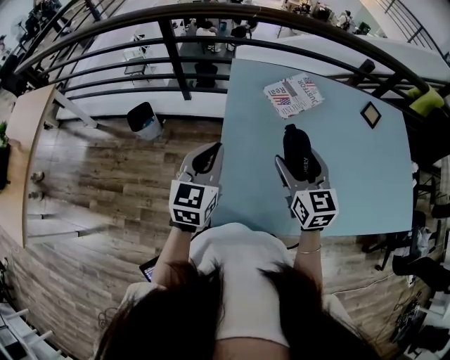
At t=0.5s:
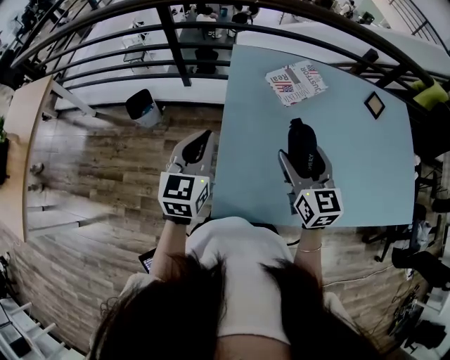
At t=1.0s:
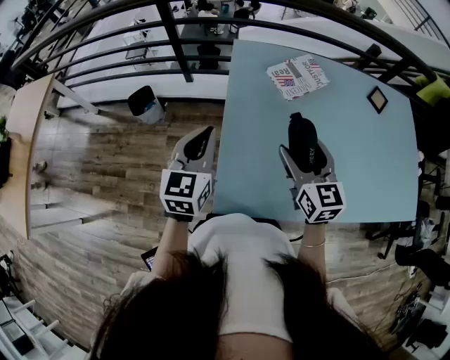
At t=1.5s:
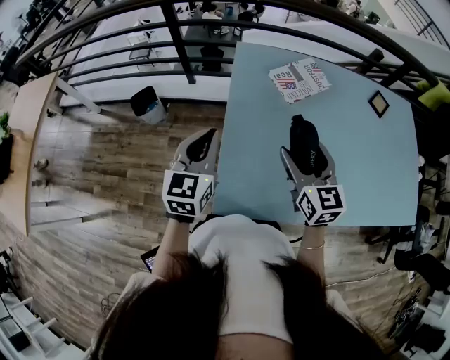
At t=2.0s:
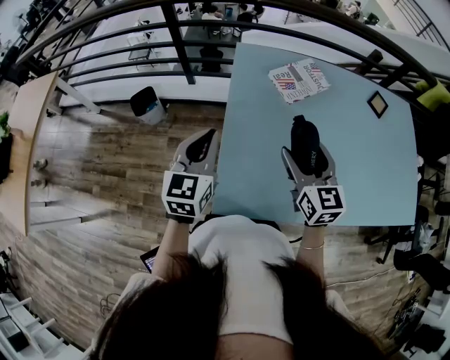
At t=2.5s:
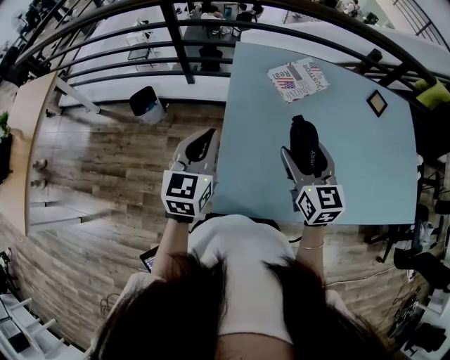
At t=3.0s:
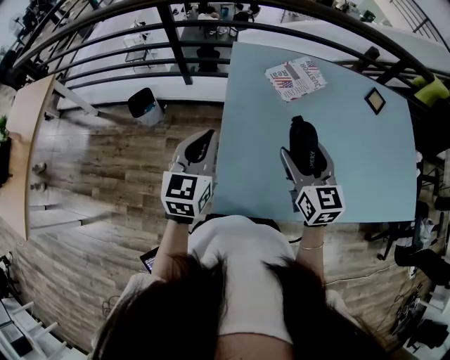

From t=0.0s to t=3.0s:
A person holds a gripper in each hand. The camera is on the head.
From t=0.0s to t=1.5s: There are only small adjustments of the grippers.
From t=1.5s to t=3.0s: Neither gripper changes place.

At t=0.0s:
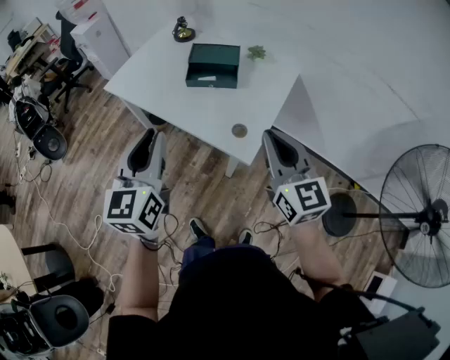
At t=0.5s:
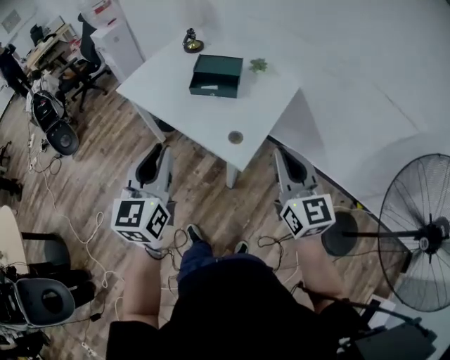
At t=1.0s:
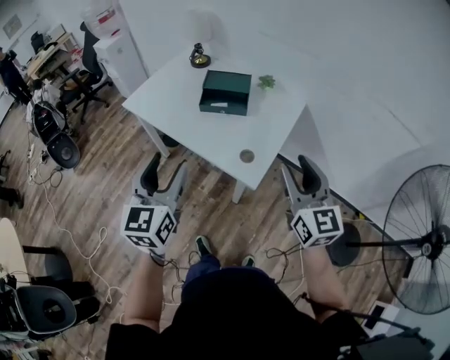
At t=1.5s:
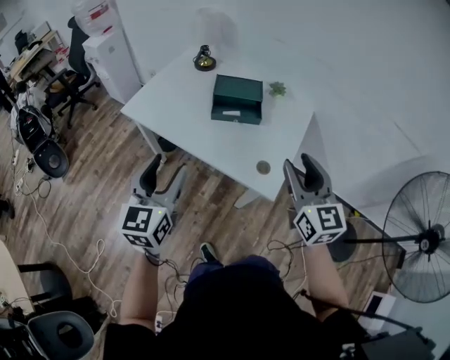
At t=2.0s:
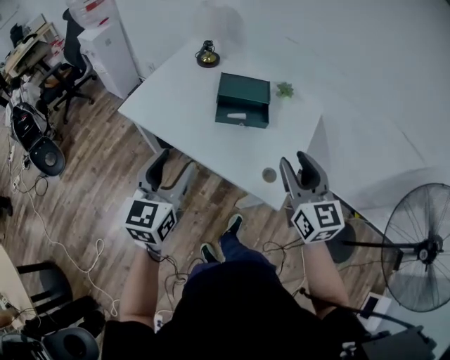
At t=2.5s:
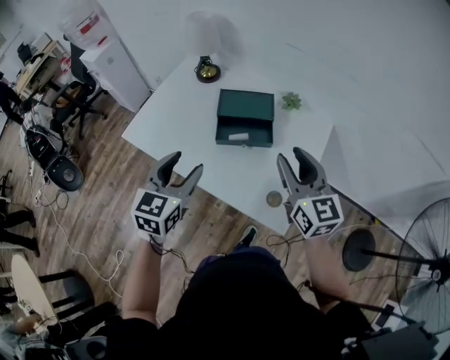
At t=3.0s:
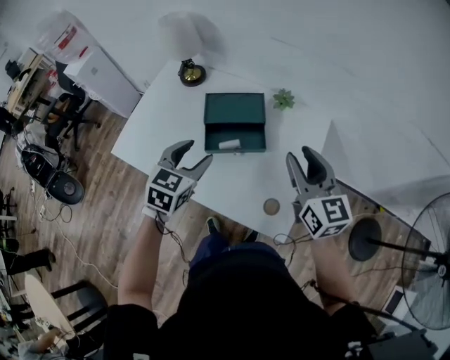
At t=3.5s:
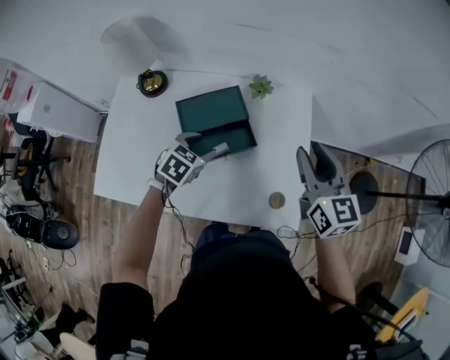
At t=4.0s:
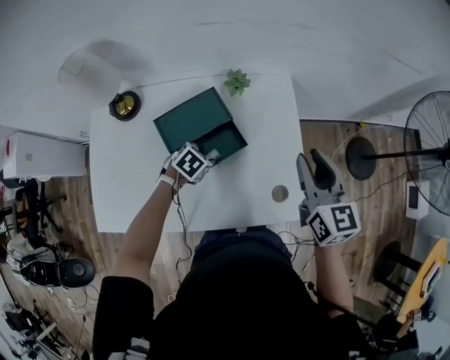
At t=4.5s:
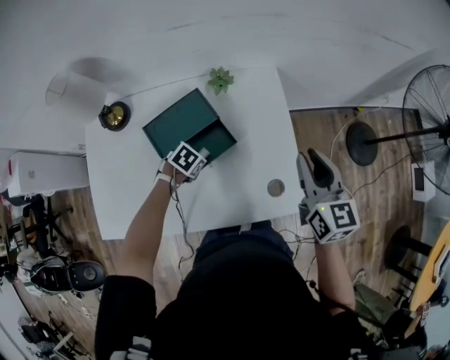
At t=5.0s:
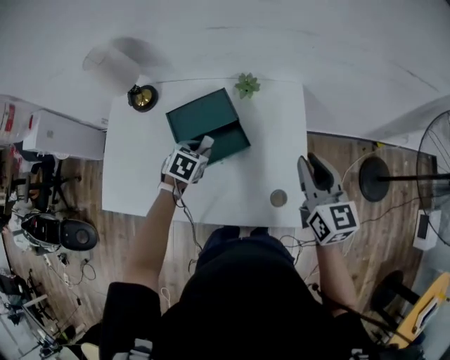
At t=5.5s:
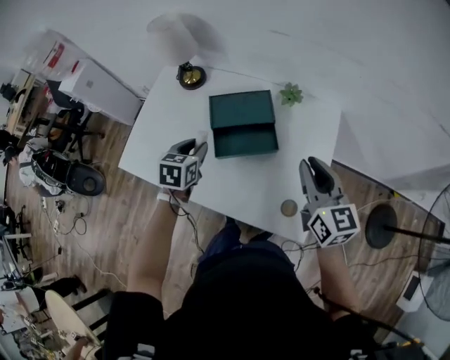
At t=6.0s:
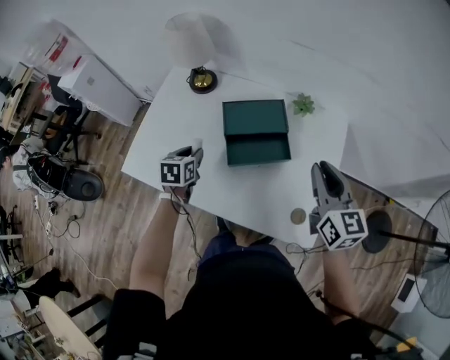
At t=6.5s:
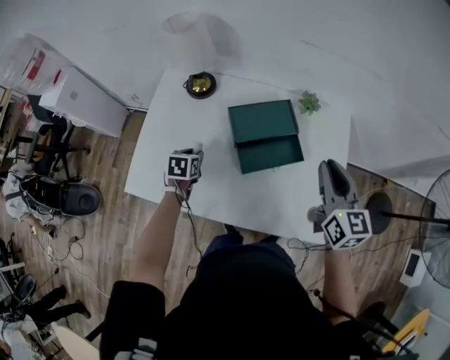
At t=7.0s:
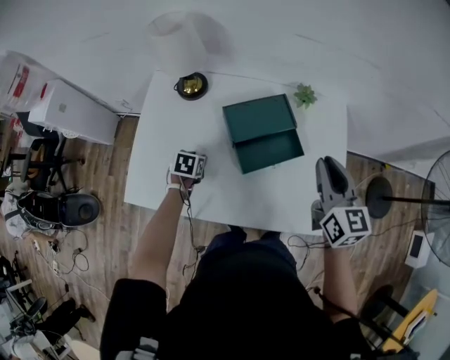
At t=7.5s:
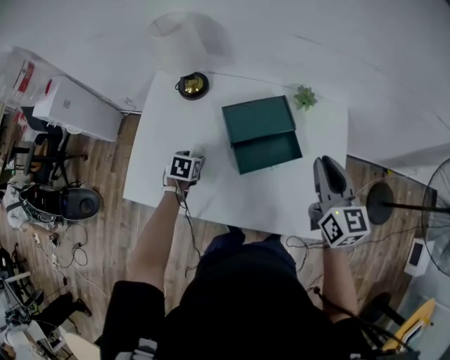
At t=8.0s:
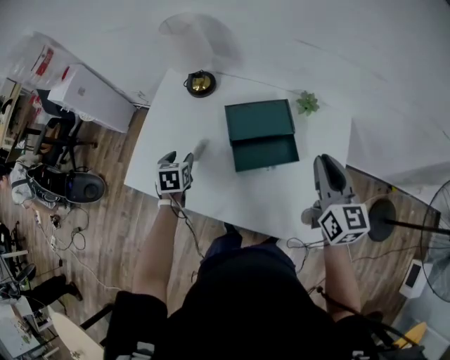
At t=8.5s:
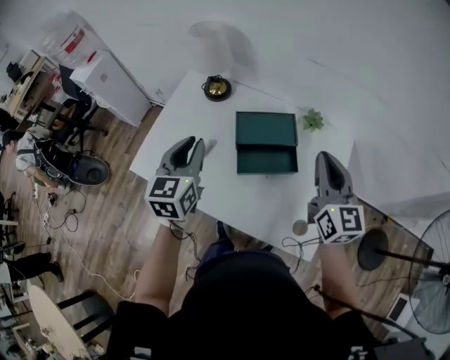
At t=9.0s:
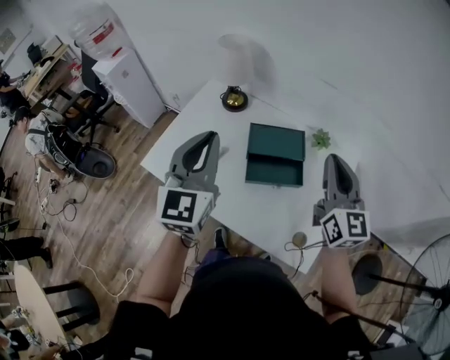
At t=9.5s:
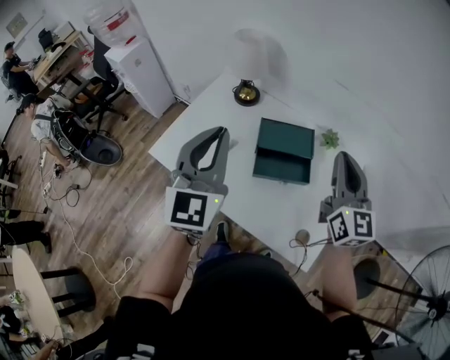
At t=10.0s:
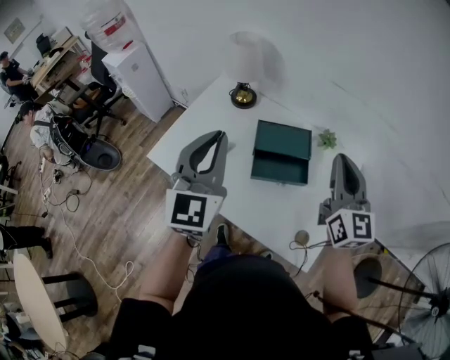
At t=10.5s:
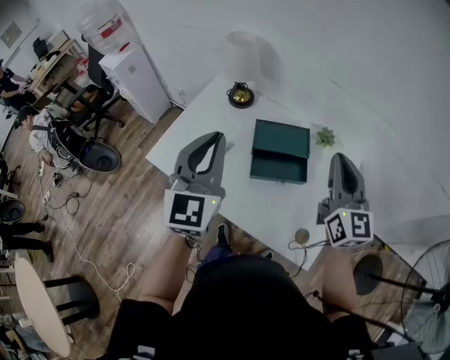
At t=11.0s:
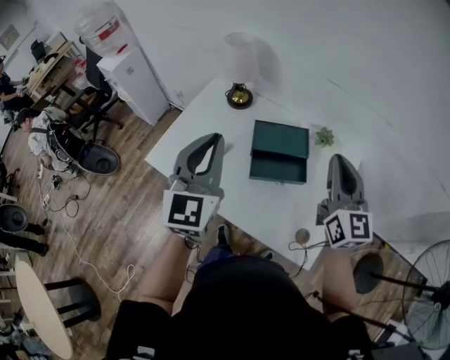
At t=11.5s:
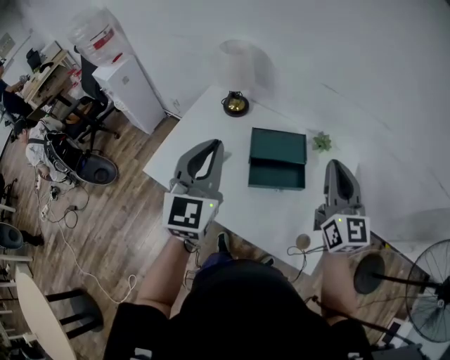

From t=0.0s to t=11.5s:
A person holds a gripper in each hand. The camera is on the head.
From t=0.0s to t=2.0s: The left gripper goes roughly 20 cm forward, to the left and downward, and opens its fingers; the right gripper moves forward and to the left, about 15 cm, and opens up.
From t=2.0s to t=4.0s: The right gripper ends up some 25 cm from where it was, and changes its angle by some 40 degrees. Meanwhile the left gripper shifts by approximately 50 cm, and angles its fingers downward, by approximately 50 degrees.
From t=4.0s to t=6.0s: The left gripper moves approximately 25 cm, twists some 50 degrees counterclockwise, seen from behind, and closes. Meanwhile the right gripper moves about 5 cm, and changes its angle by some 20 degrees.
From t=6.0s to t=7.5s: The left gripper is displaced downward, to the left and forward by some 15 cm, changes its angle by roughly 20 degrees, and opens its fingers; the right gripper goes about 5 cm to the left.
From t=7.5s to t=9.5s: The right gripper goes approximately 15 cm upward, and rotates approximately 30 degrees. The left gripper is displaced upward by about 50 cm, points its fingers roughly 60 degrees further upward, and closes its fingers.
From t=9.5s to t=11.5s: The grippers make only small movements.

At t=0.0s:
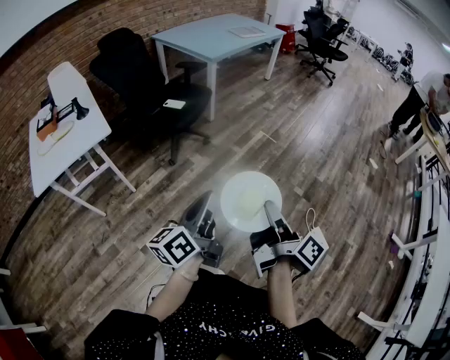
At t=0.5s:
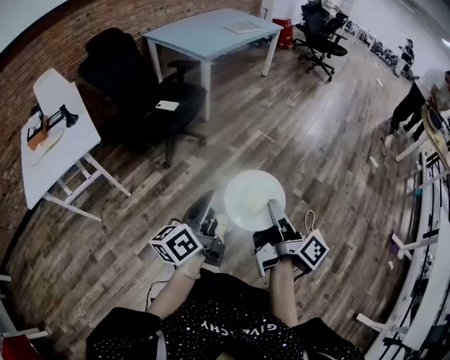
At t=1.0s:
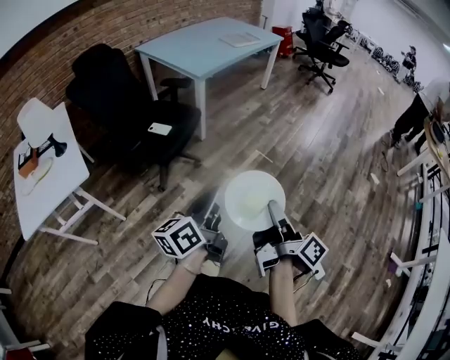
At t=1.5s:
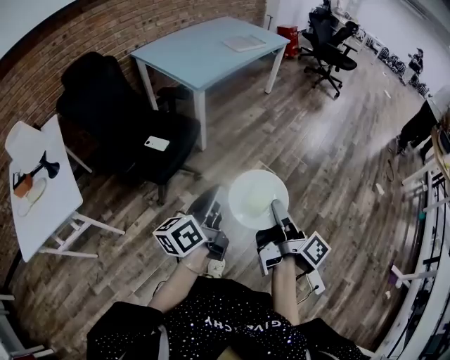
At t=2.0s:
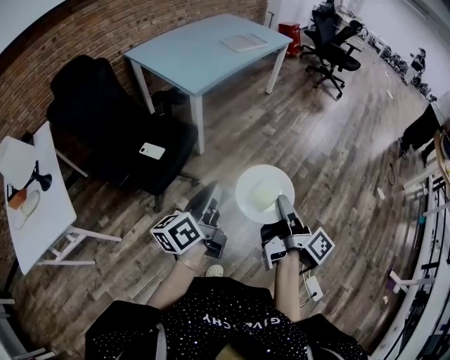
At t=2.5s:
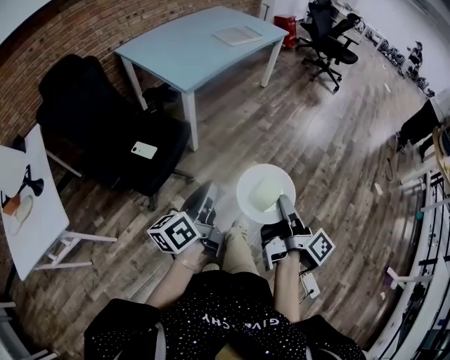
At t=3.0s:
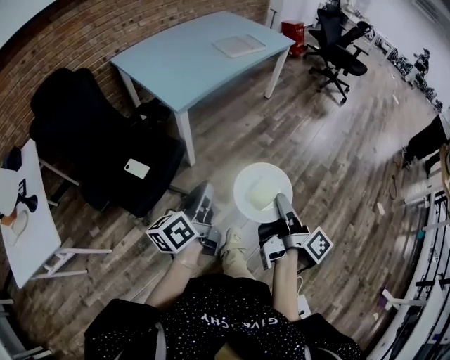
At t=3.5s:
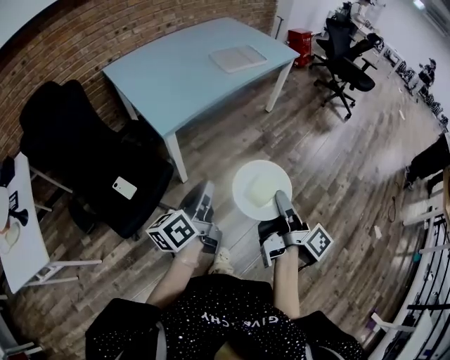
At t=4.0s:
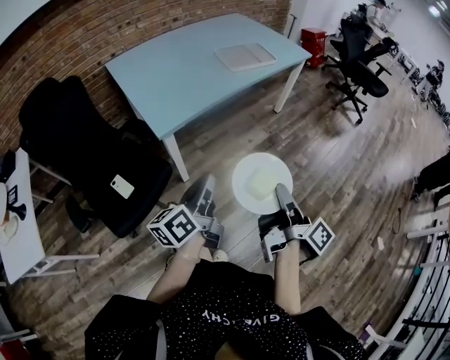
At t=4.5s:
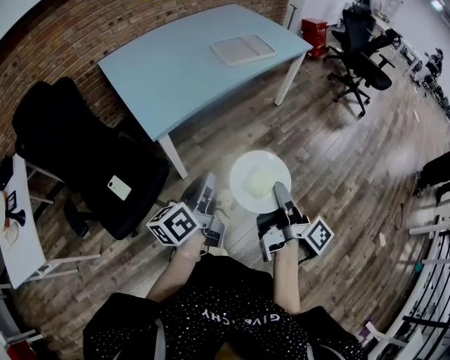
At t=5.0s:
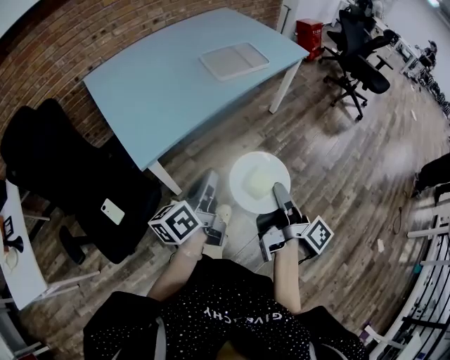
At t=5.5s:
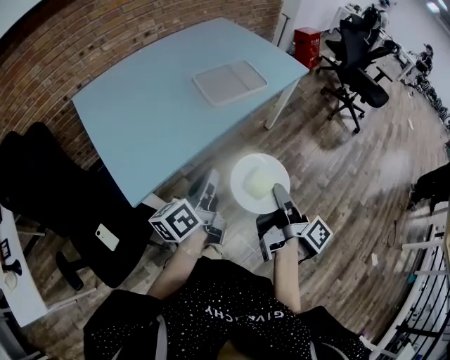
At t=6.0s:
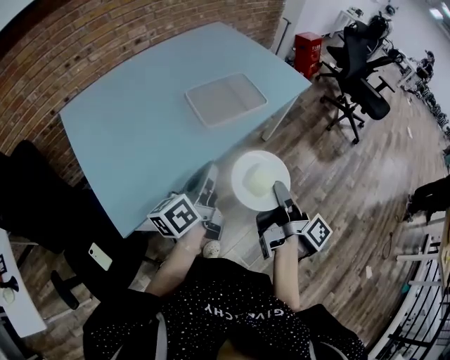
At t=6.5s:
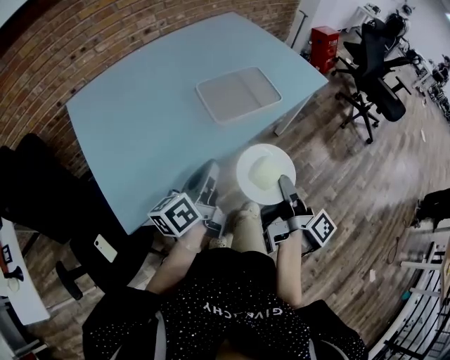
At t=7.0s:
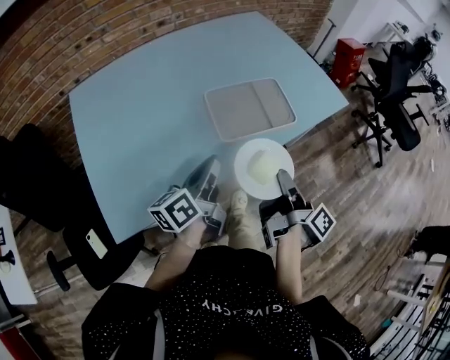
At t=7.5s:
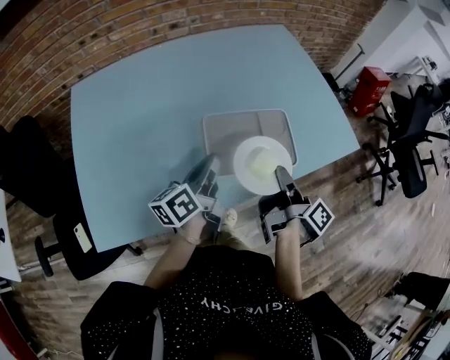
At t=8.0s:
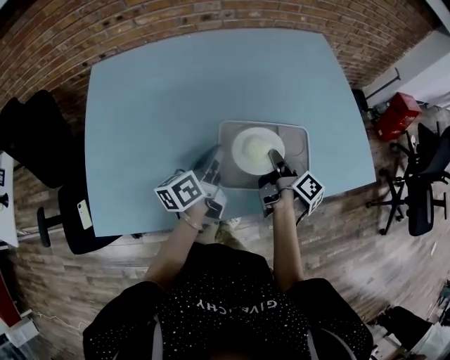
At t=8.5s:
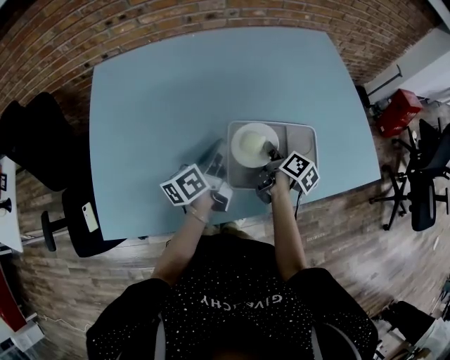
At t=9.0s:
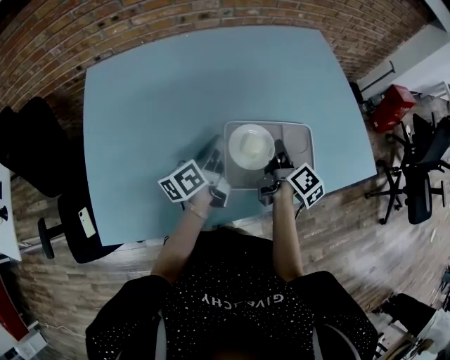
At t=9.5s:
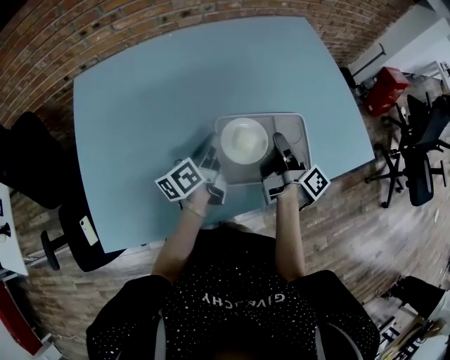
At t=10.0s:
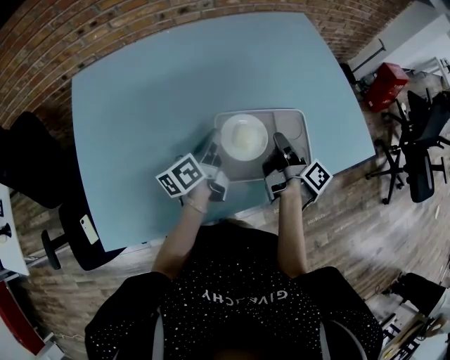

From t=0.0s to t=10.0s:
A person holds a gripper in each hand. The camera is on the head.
From t=0.0s to t=2.0s: The left gripper changes place by roughly 50 cm.
From t=2.0s to t=4.0s: The left gripper moves some 40 cm.
From t=4.0s to t=6.0s: The left gripper moves some 50 cm.
From t=6.0s to t=8.0s: The left gripper moves about 35 cm, and turns by about 30 degrees.

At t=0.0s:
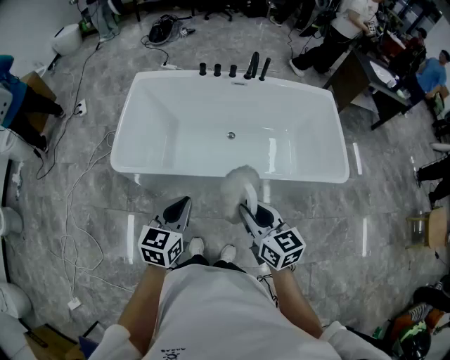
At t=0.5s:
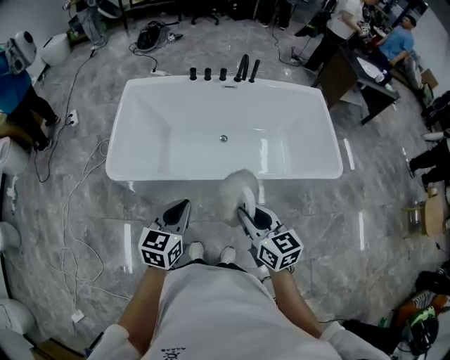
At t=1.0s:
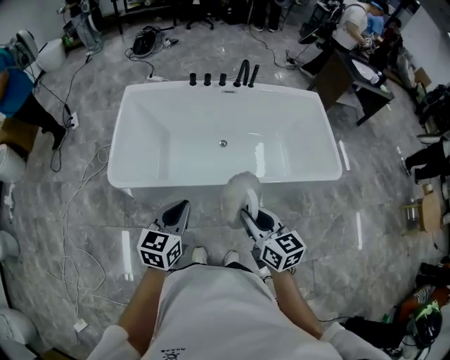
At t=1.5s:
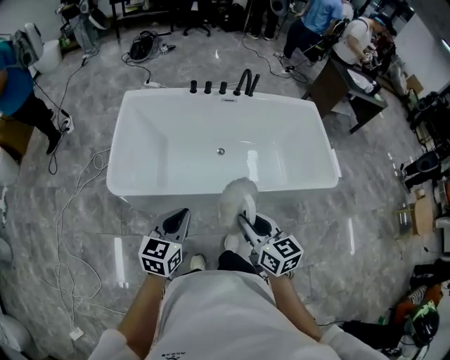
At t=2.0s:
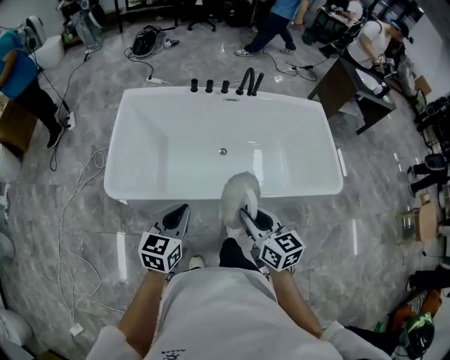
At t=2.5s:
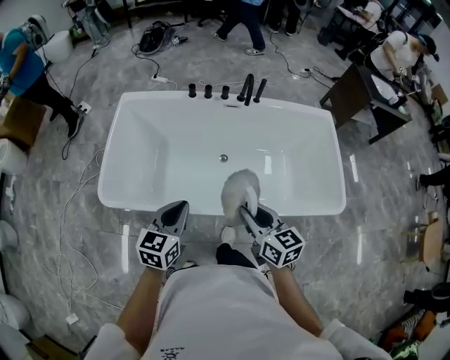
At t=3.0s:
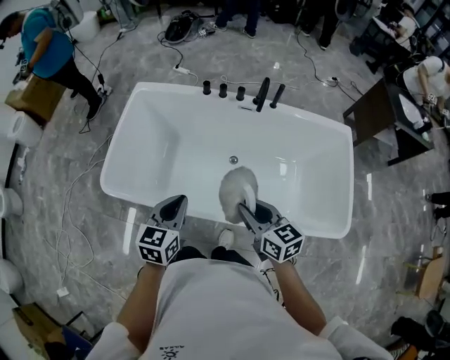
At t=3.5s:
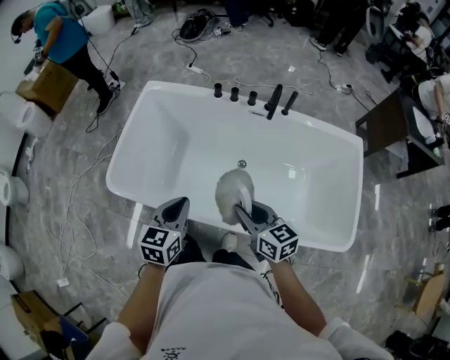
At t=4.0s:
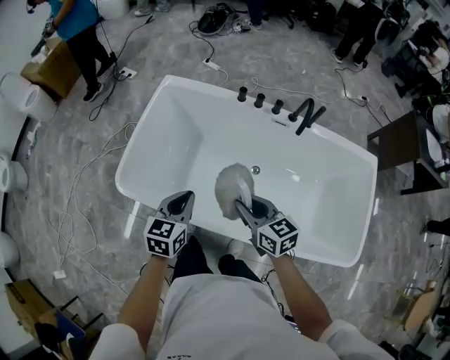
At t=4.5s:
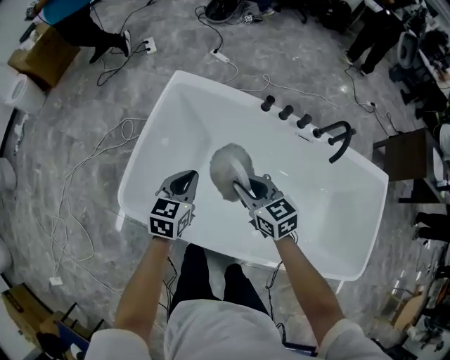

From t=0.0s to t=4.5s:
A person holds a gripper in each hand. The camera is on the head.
From t=0.0s to t=2.0s: The two grippers go about 5 cm forward.
From t=2.0s to t=4.5s: The right gripper ends up approximately 50 cm from where it was, and changes its angle by some 40 degrees; the left gripper moves roughly 40 cm, and turns by some 20 degrees.
